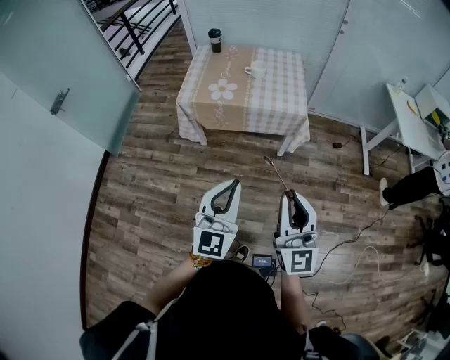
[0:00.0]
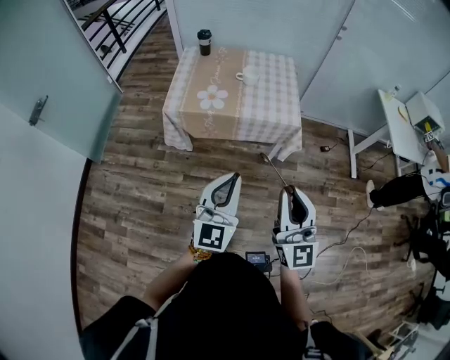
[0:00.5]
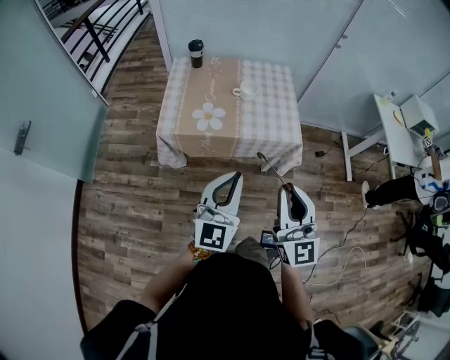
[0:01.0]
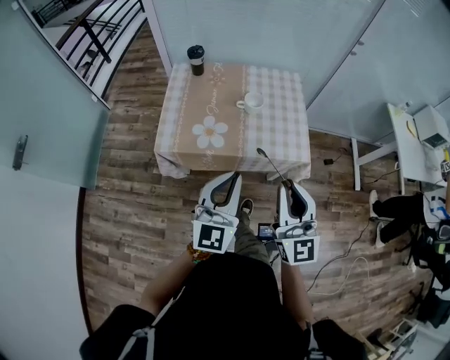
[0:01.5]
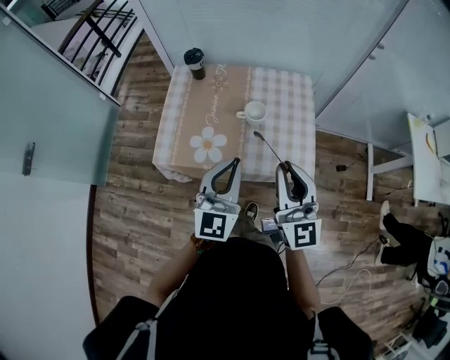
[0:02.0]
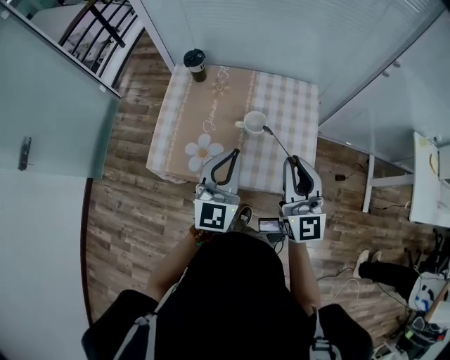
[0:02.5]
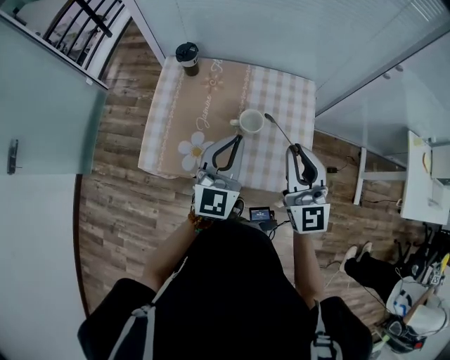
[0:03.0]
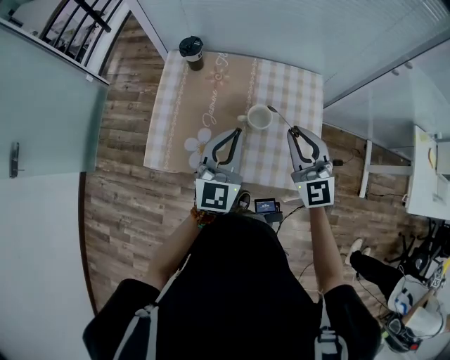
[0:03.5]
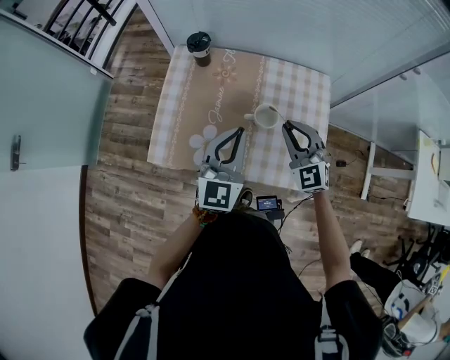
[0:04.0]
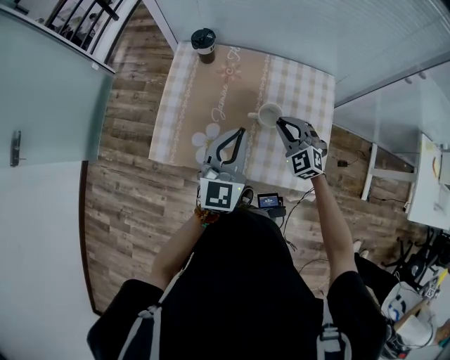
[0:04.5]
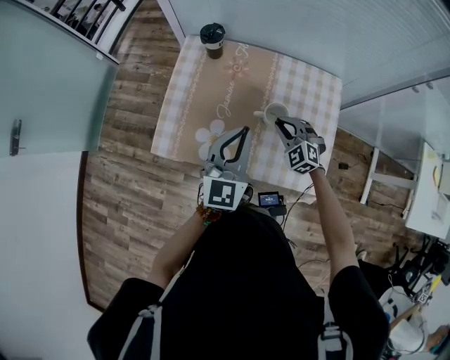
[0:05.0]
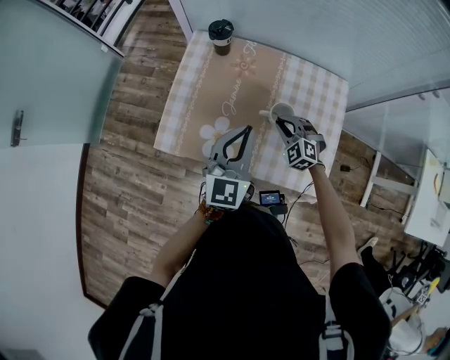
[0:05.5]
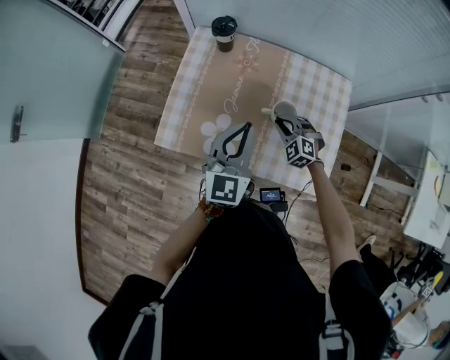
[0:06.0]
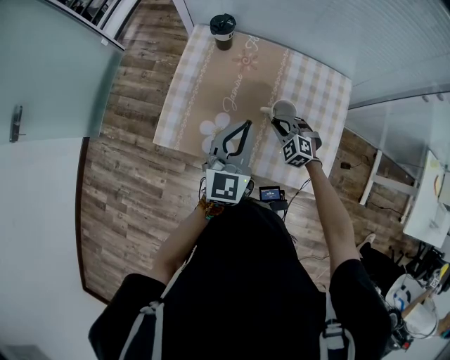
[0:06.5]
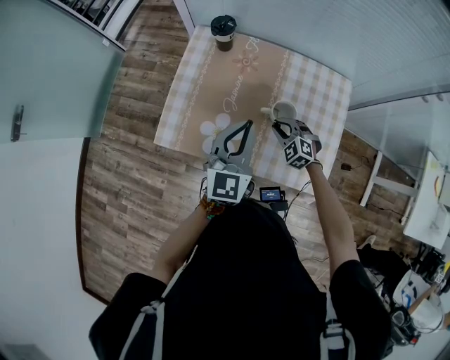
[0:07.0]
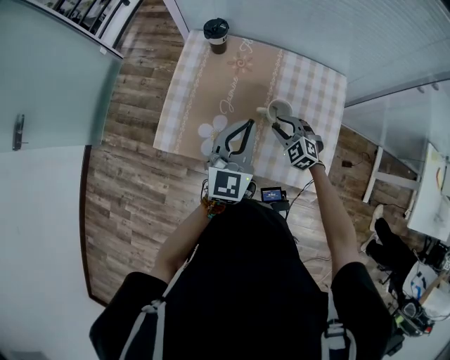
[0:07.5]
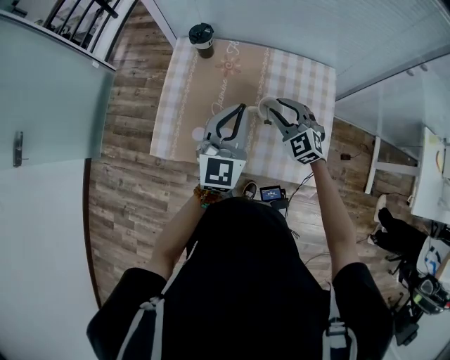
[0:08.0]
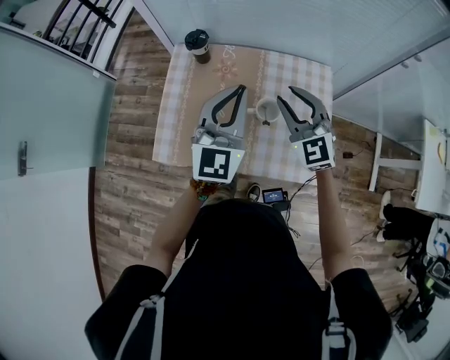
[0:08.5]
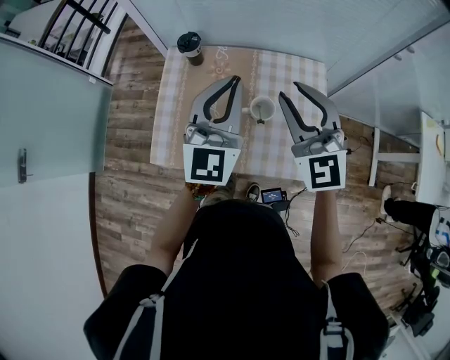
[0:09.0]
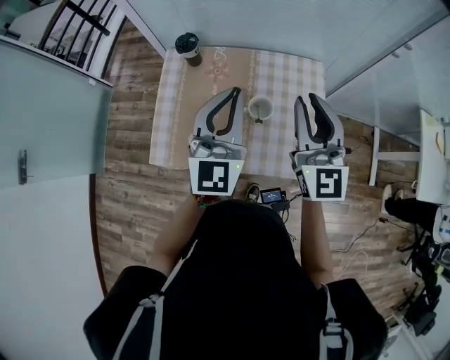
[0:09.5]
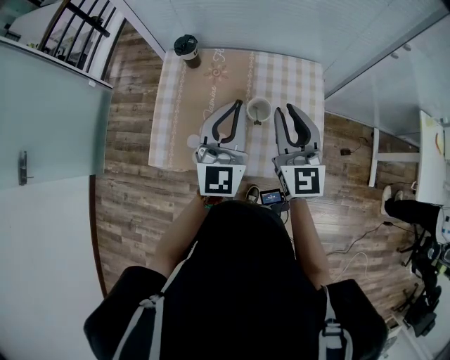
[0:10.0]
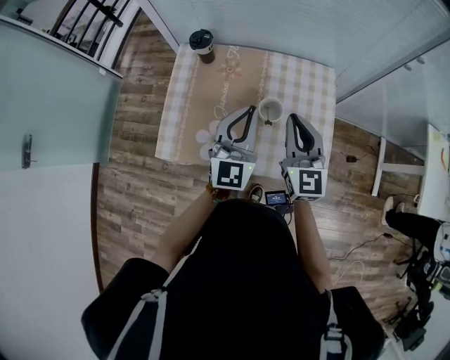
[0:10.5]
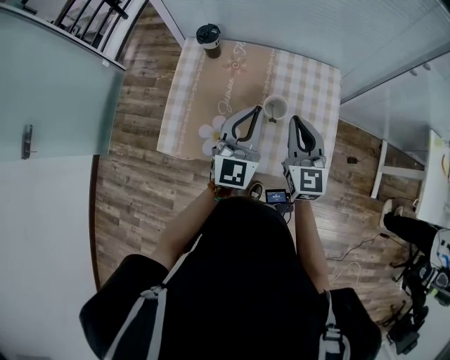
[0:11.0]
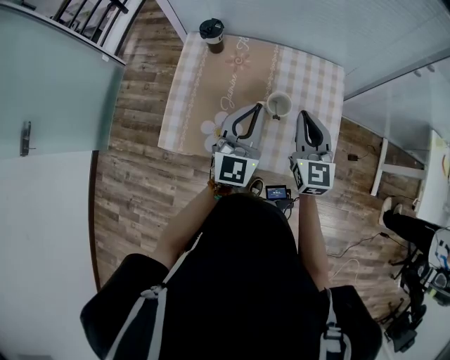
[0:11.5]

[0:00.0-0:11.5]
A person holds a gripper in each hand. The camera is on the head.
0:00.0 to 0:02.0: Both grippers are carried forward, approximately 50 cm.
0:02.0 to 0:04.0: The right gripper travels forward and downward by some 30 cm, and tips its fingers downward by approximately 30 degrees. The left gripper heads forward, covering approximately 20 cm.
0:04.0 to 0:06.0: The right gripper travels downward by some 20 cm, and turns by about 30 degrees.
0:06.0 to 0:07.5: The grippers make only small movements.
0:07.5 to 0:09.5: The right gripper goes approximately 35 cm upward, and points its fingers roughly 50 degrees further upward; the left gripper moves upward, about 15 cm.
0:09.5 to 0:11.5: Both grippers travel together downward, approximately 10 cm.

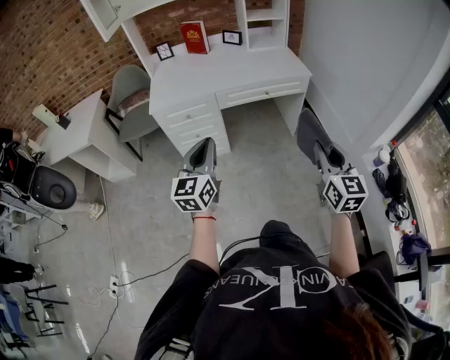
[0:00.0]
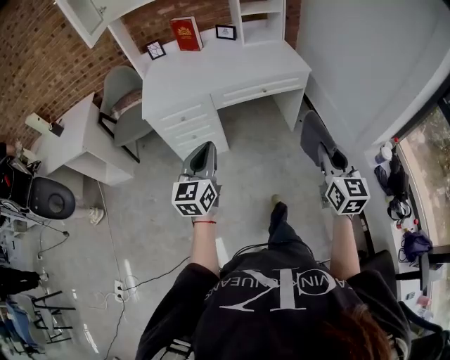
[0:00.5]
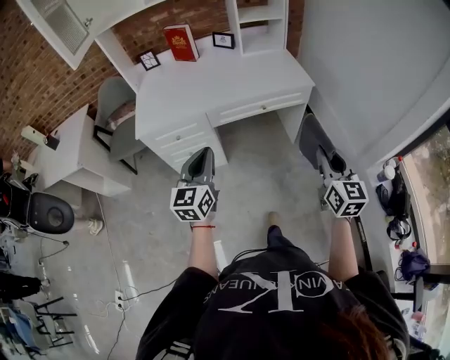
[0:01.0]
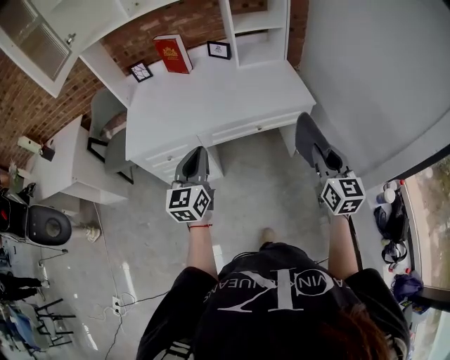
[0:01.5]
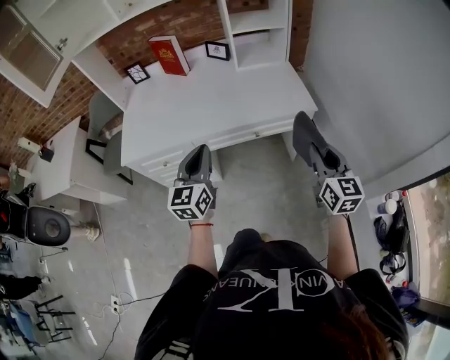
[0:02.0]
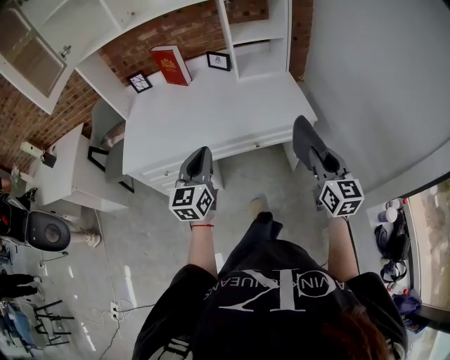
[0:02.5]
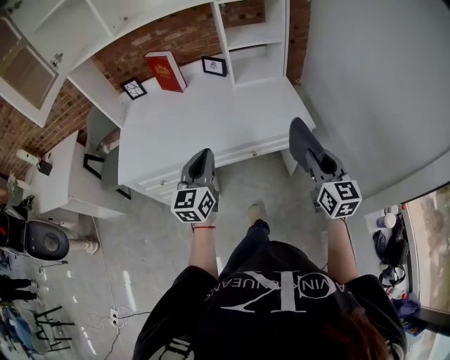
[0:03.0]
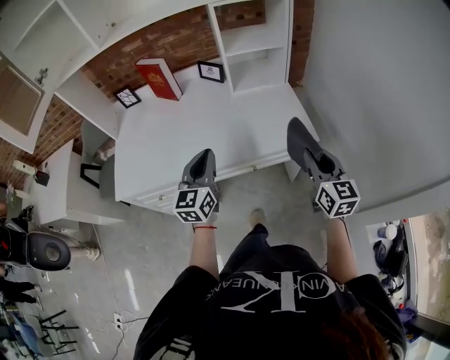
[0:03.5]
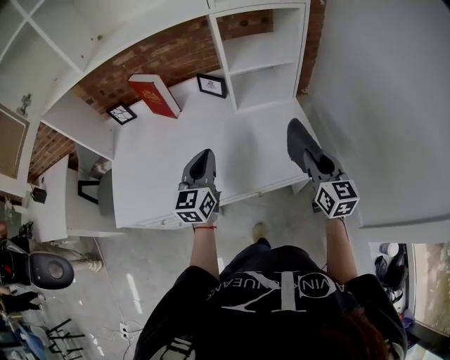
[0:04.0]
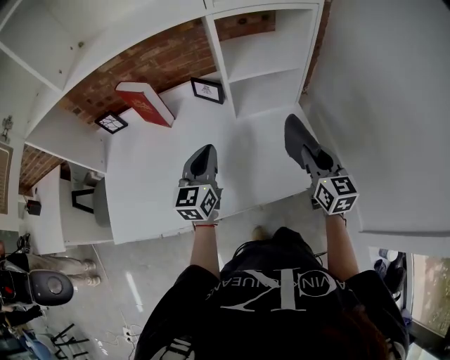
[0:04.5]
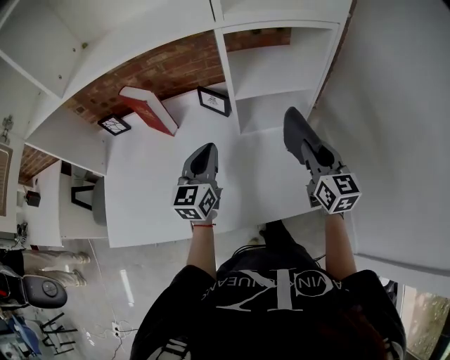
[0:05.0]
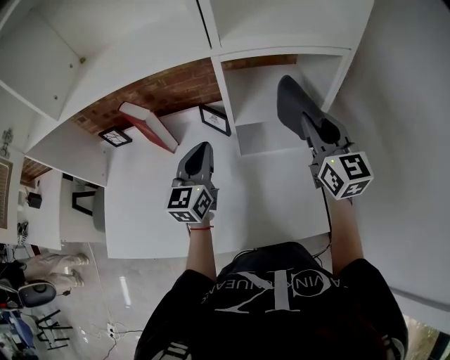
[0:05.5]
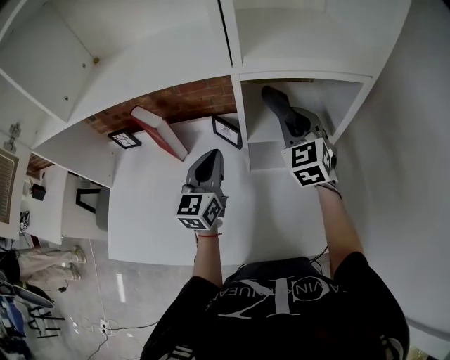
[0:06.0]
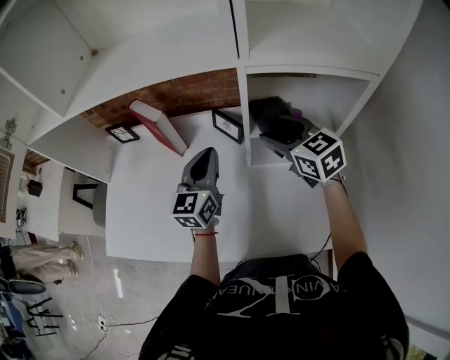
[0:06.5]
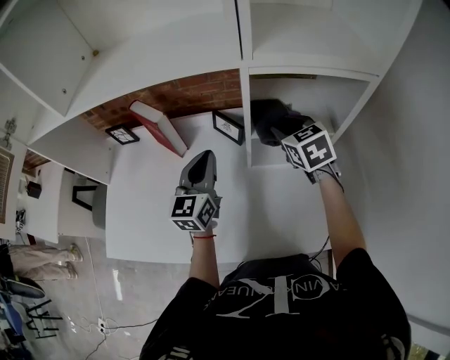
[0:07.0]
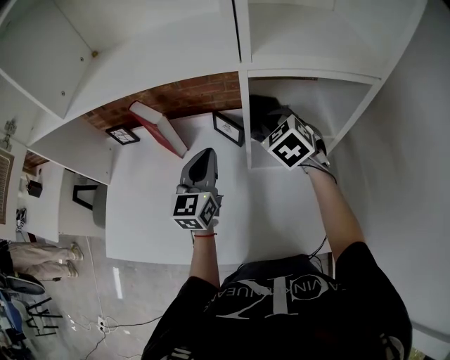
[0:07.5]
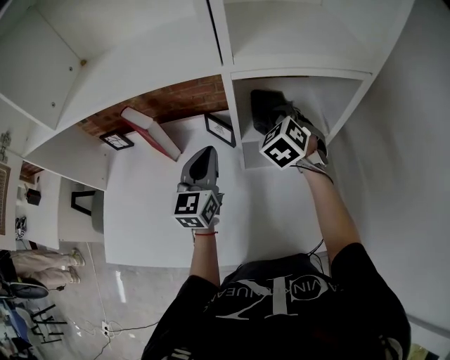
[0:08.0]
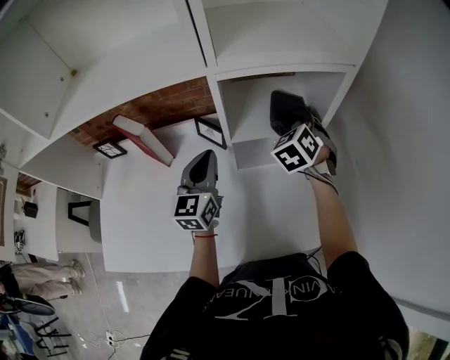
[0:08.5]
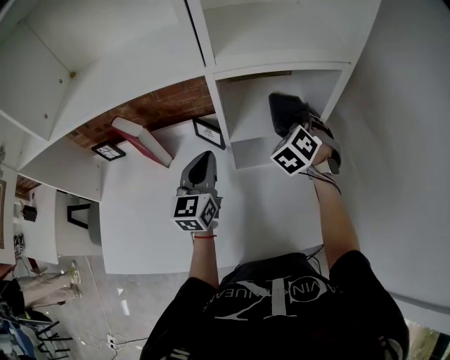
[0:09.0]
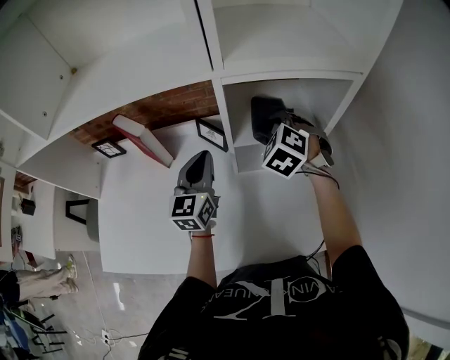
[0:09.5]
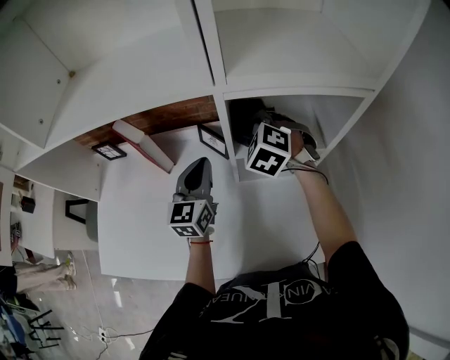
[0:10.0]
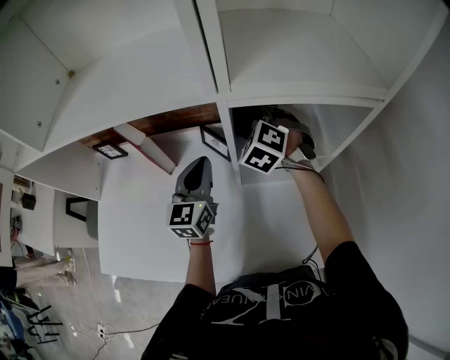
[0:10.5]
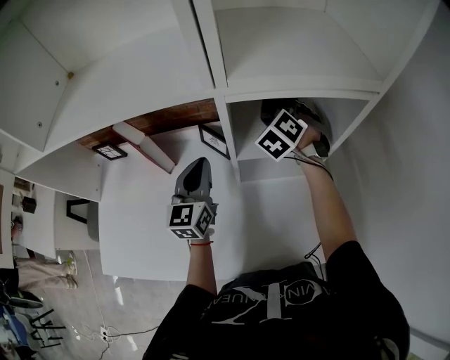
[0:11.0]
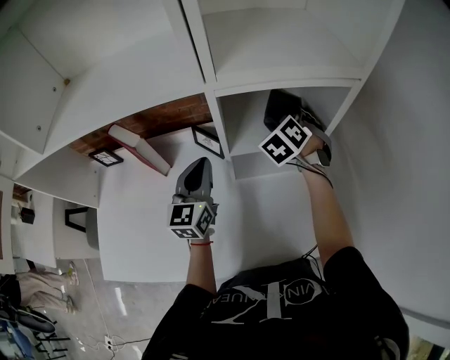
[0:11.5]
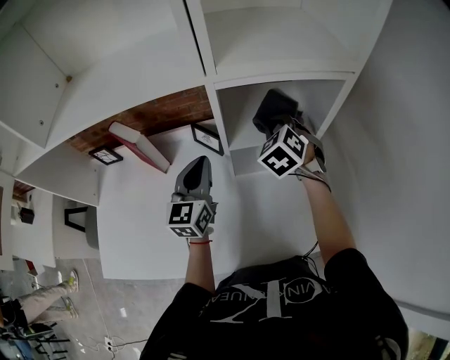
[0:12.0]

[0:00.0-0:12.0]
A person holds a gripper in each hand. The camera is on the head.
0:00.0 to 0:02.0: Both grippers move forward, some 35 cm.
0:02.0 to 0:04.0: Both grippers move forward, roughly 25 cm.
0:04.0 to 0:06.0: The left gripper shifts roughly 25 cm forward; the right gripper shifts about 35 cm forward, and rotates around the line of its fingers by about 40 degrees, counterclockwise from behind.
0:06.0 to 0:08.0: The right gripper is displaced downward by about 5 cm, changes its angle by about 20 degrees, and opens, then closes once more.
0:08.0 to 0:10.0: The right gripper goes to the right and returns, some 10 cm each way, and turns by some 20 degrees.
0:10.0 to 0:12.0: The right gripper moves to the right, about 10 cm, and turns by about 20 degrees.

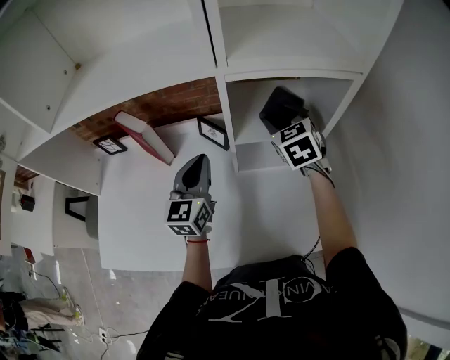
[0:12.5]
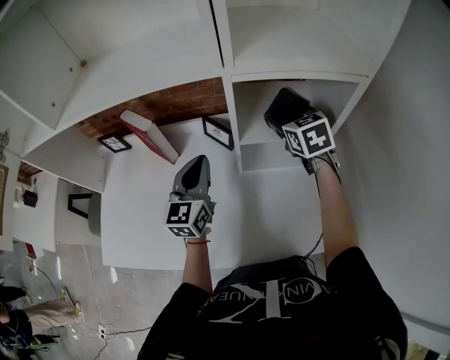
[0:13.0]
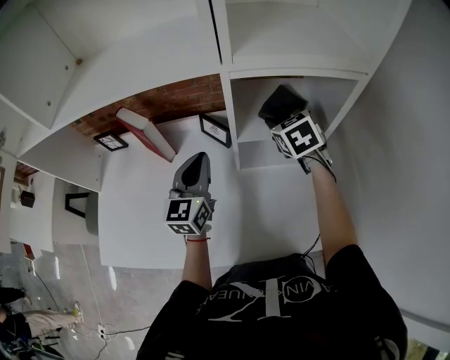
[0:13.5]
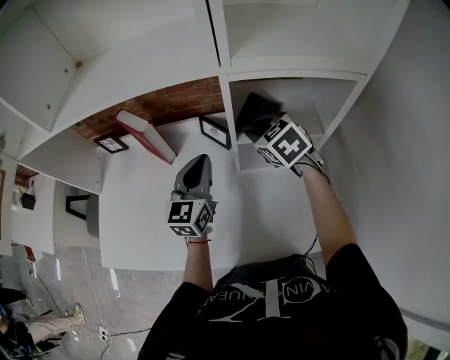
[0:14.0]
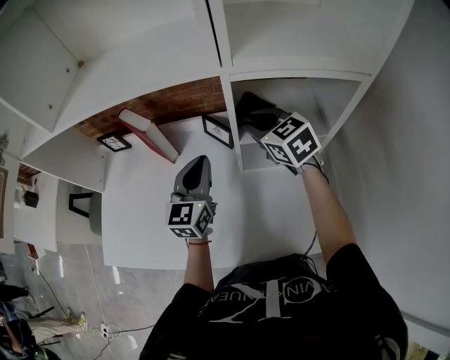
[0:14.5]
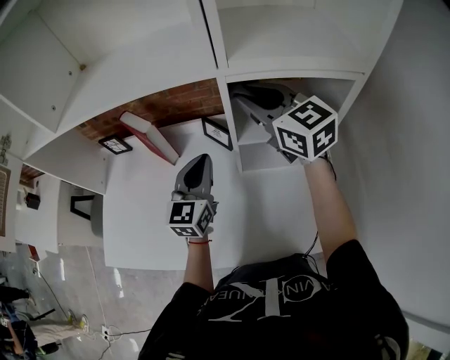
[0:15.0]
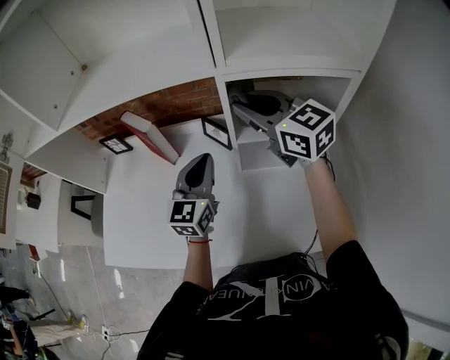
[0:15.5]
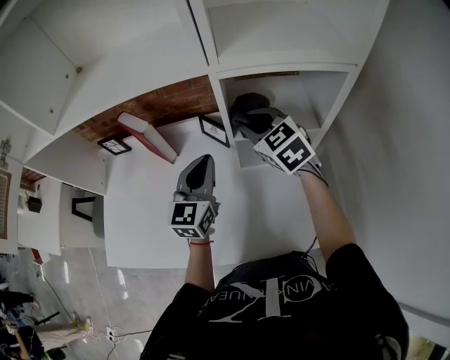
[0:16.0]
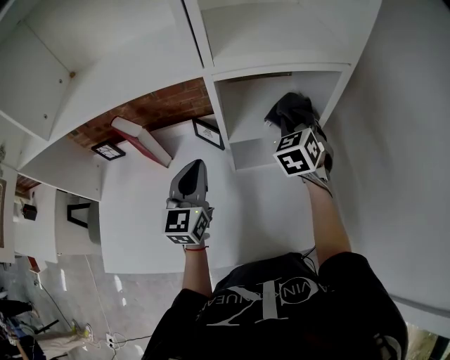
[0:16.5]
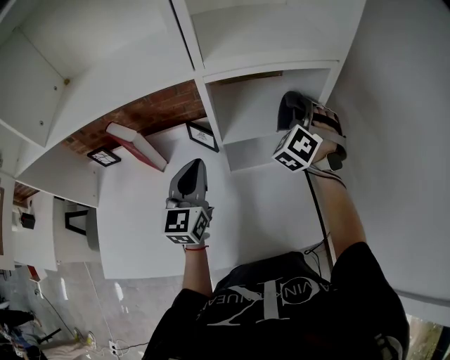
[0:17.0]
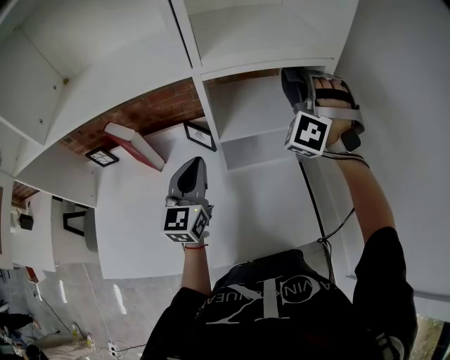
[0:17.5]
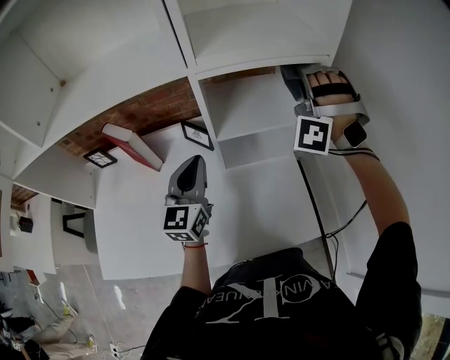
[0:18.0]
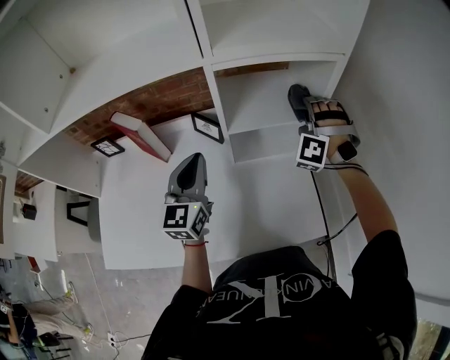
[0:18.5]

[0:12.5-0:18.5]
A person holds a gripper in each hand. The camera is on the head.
0:12.5 to 0:14.5: The right gripper goes roughly 10 cm to the left, turns by about 30 degrees, and closes.
0:14.5 to 0:16.5: The right gripper goes upward and returns, about 10 cm each way, and swivels about 50 degrees.
0:16.5 to 0:18.5: The right gripper reaches roughly 15 cm upward, then returns, and rolls counterclockwise, seen from behind, by approximately 60 degrees.
